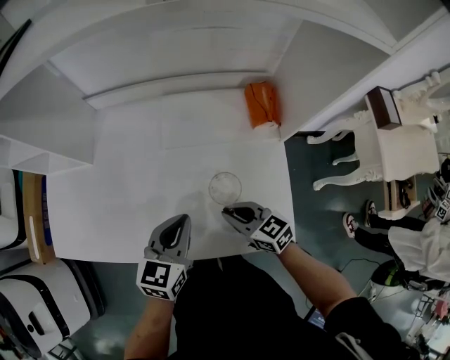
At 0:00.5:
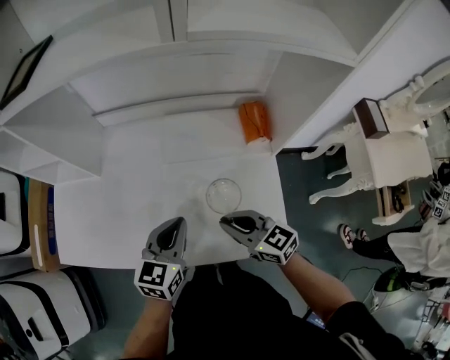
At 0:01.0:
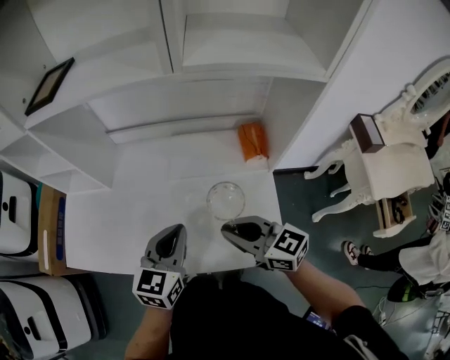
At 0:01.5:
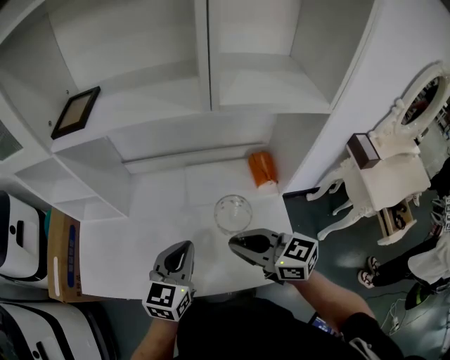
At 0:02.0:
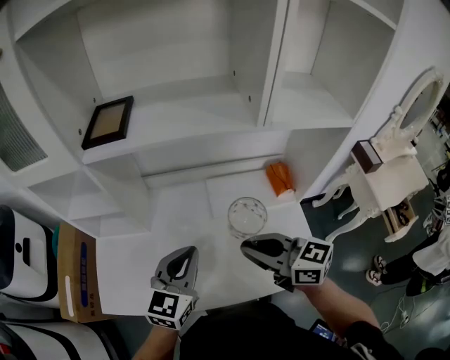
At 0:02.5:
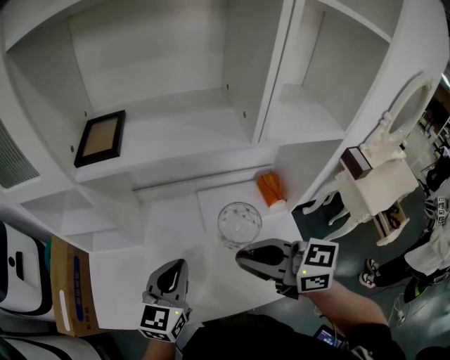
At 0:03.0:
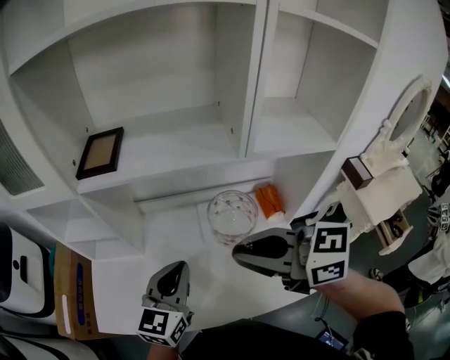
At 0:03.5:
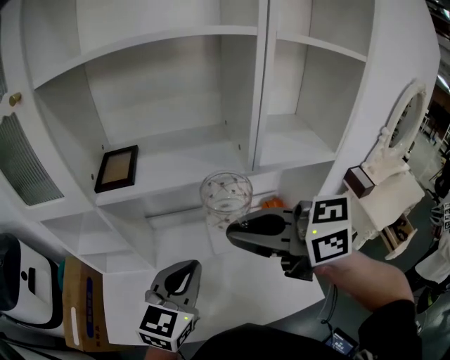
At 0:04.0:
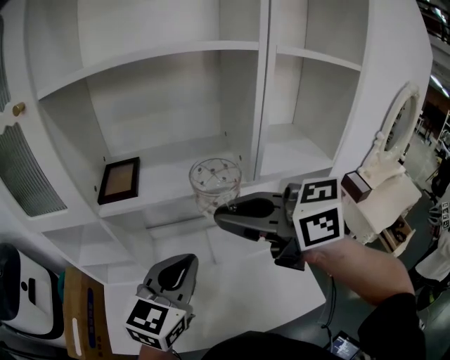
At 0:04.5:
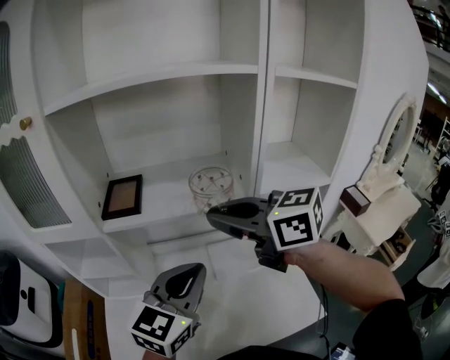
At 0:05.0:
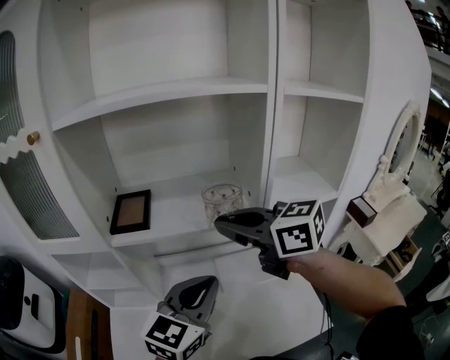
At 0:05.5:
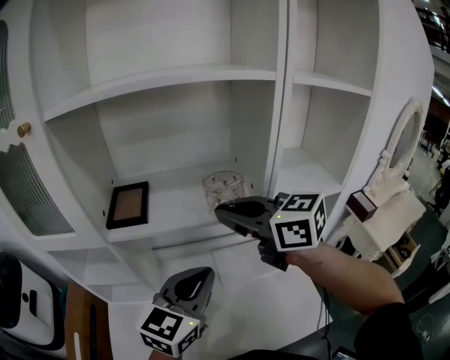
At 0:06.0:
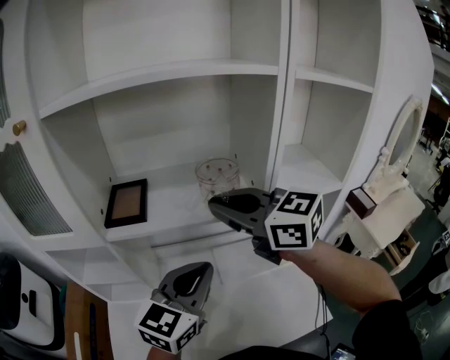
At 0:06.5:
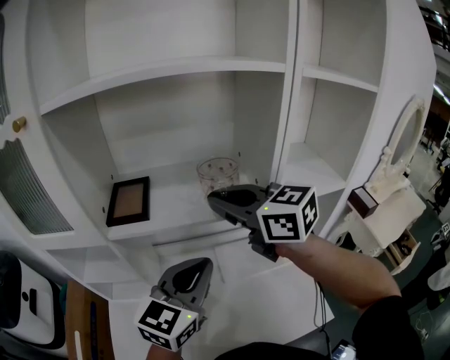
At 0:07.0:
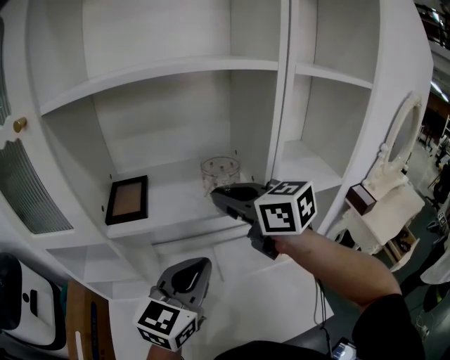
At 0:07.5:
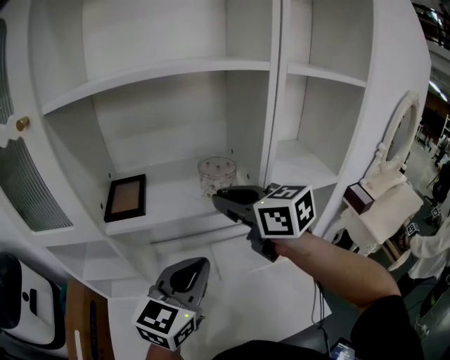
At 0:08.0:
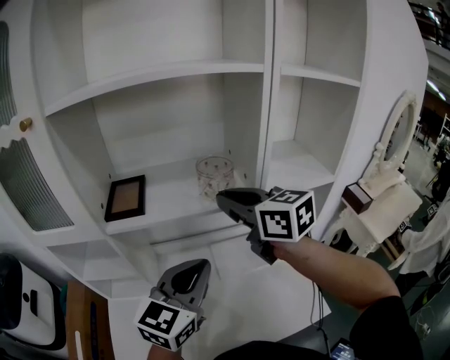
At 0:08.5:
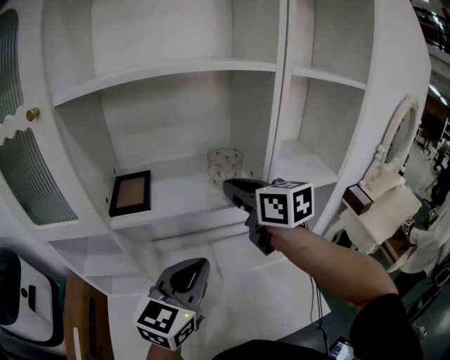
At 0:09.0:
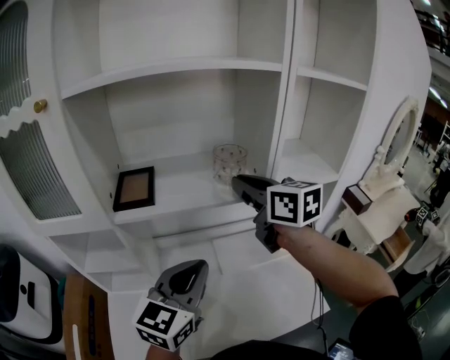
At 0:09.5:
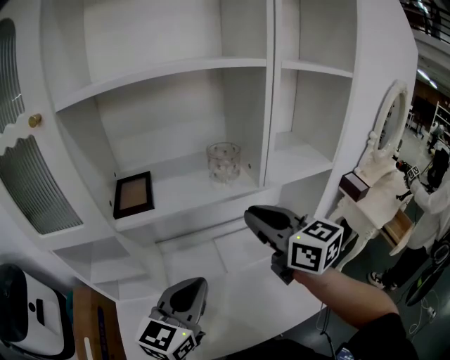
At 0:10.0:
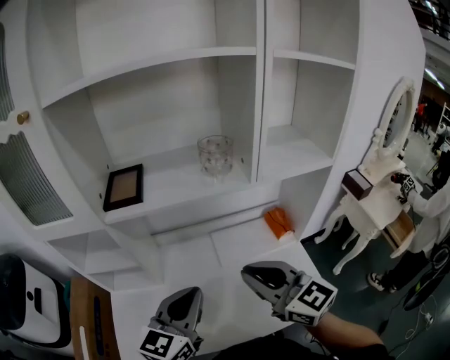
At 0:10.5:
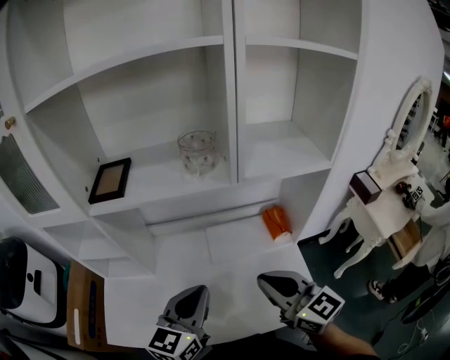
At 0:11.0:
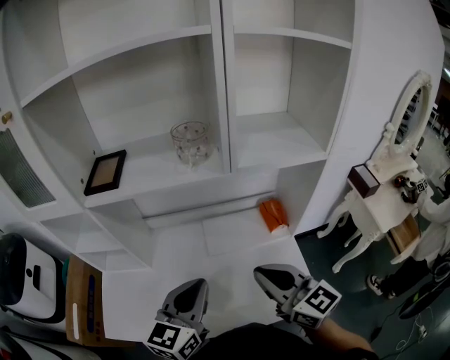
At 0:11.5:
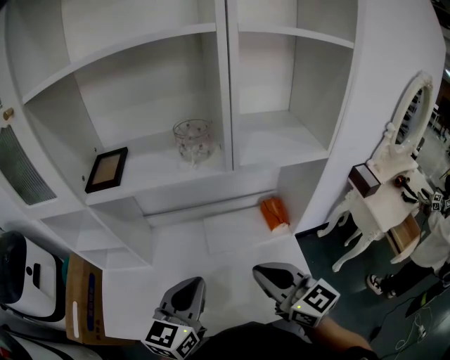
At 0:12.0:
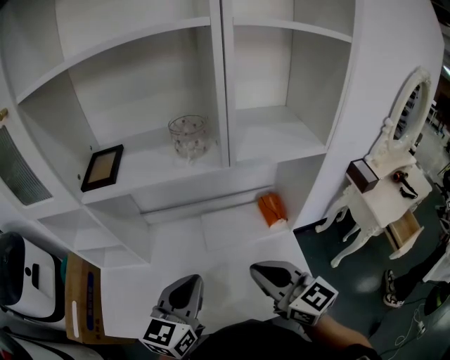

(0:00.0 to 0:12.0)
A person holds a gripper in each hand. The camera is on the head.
0:00.0 - 0:02.0: Both grippers travel together upward and to the left, about 25 cm.
0:02.0 - 0:04.0: The right gripper is displaced upward by some 25 cm. Meanwhile the left gripper heads upward, covering roughly 15 cm.
0:04.0 - 0:06.0: The right gripper shifts roughly 10 cm forward.
0:06.0 - 0:08.0: The grippers stay close to where they were, moving slightly.
0:08.0 - 0:10.0: The right gripper shifts roughly 20 cm backward and downward; the left gripper moves downward and backward, roughly 10 cm.
0:10.0 - 0:12.0: Both grippers move to the right, about 10 cm.

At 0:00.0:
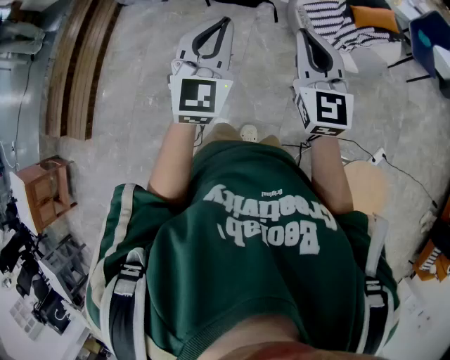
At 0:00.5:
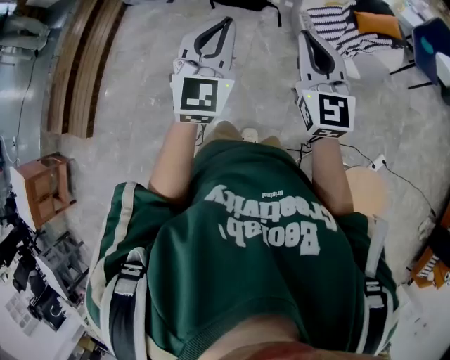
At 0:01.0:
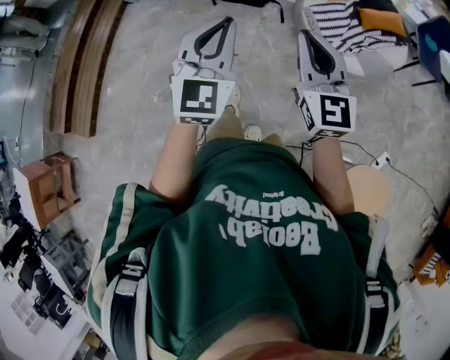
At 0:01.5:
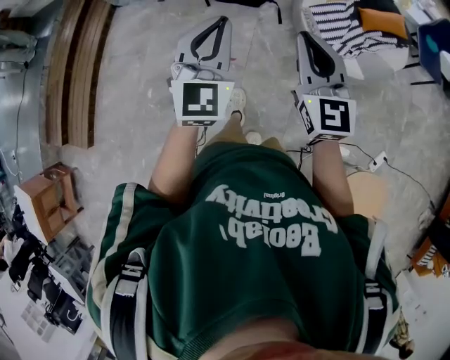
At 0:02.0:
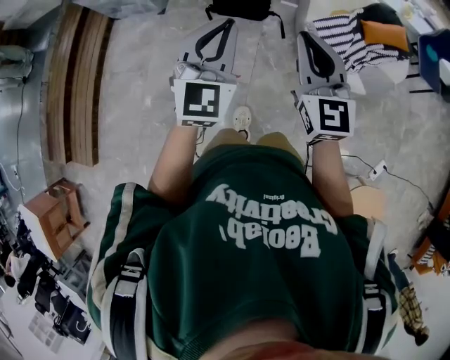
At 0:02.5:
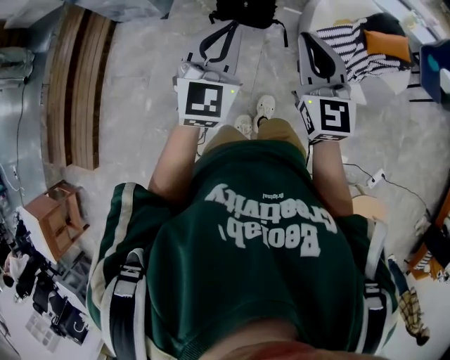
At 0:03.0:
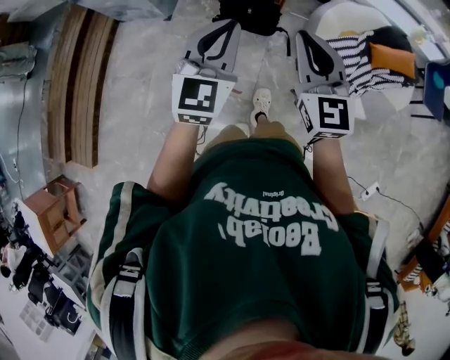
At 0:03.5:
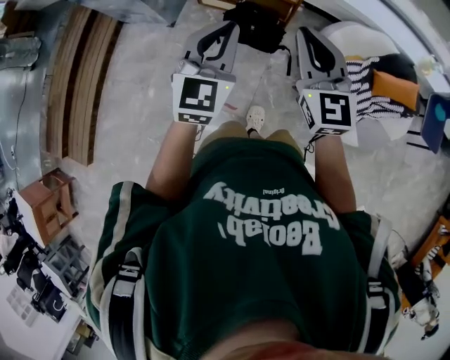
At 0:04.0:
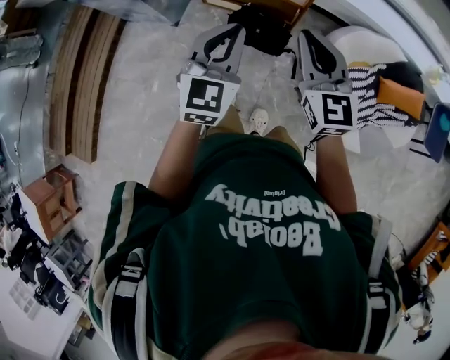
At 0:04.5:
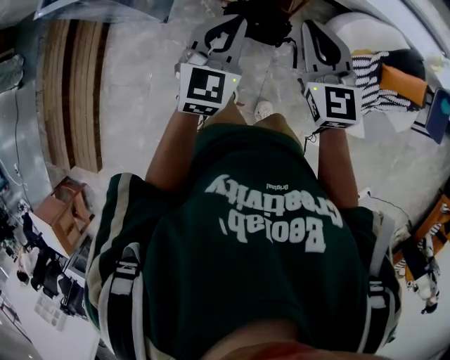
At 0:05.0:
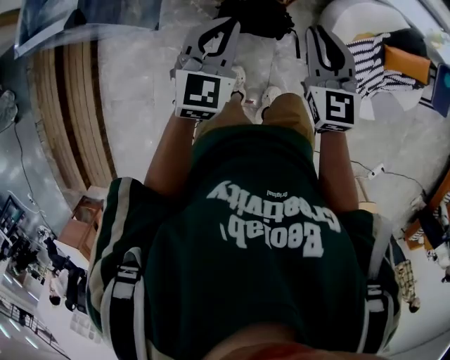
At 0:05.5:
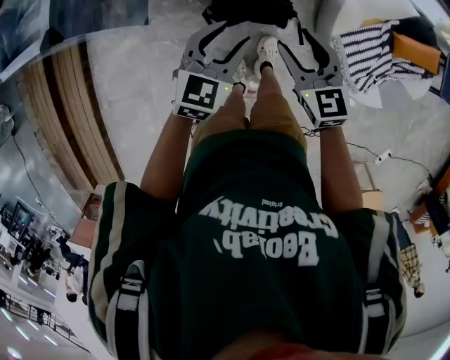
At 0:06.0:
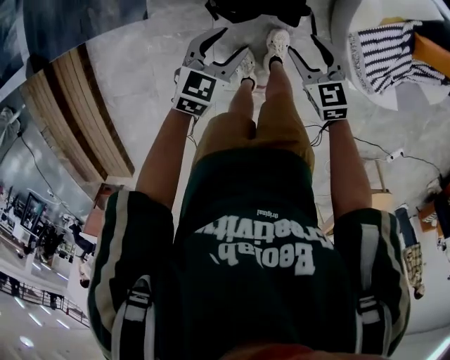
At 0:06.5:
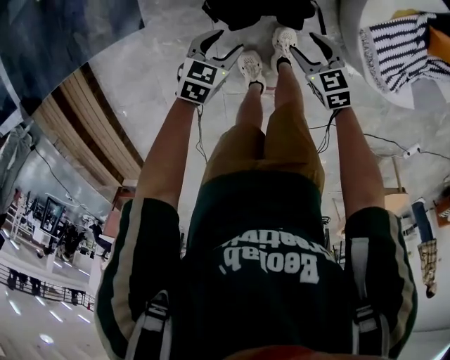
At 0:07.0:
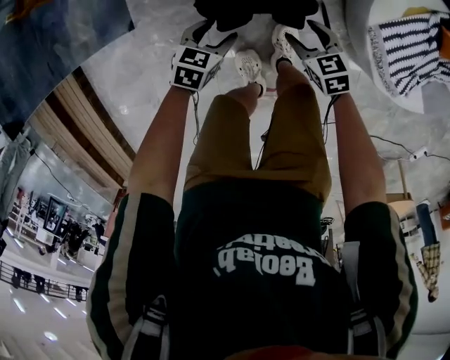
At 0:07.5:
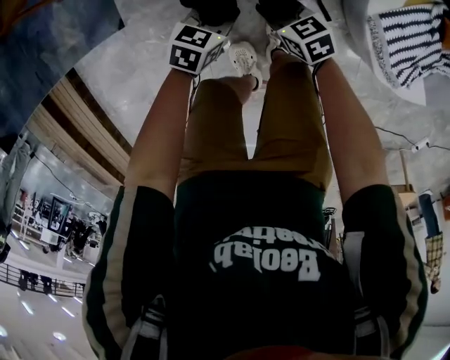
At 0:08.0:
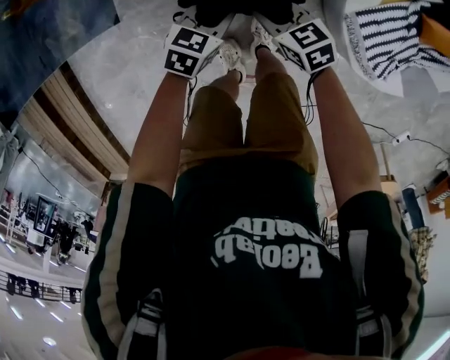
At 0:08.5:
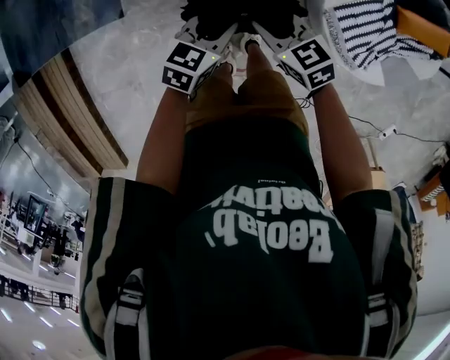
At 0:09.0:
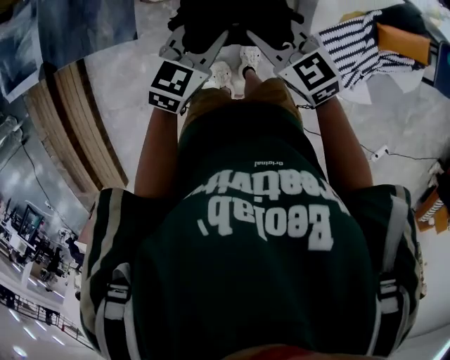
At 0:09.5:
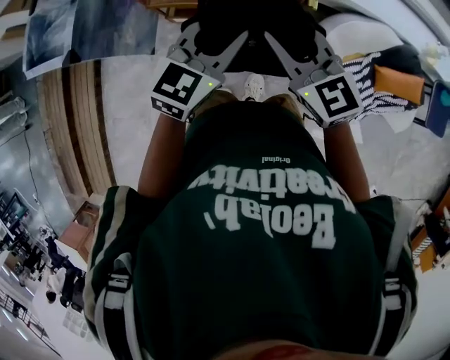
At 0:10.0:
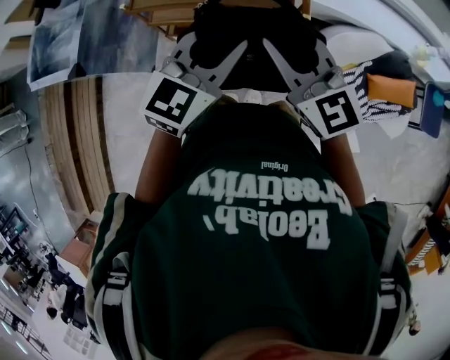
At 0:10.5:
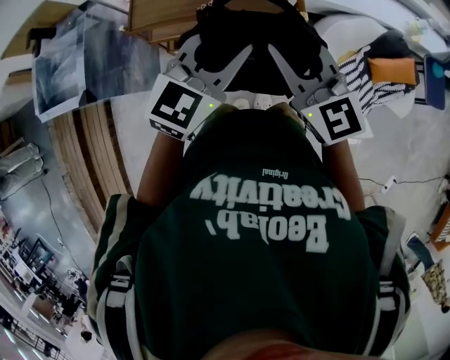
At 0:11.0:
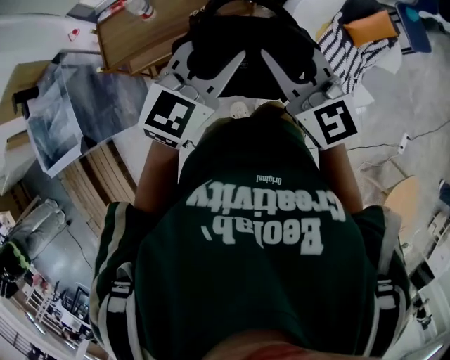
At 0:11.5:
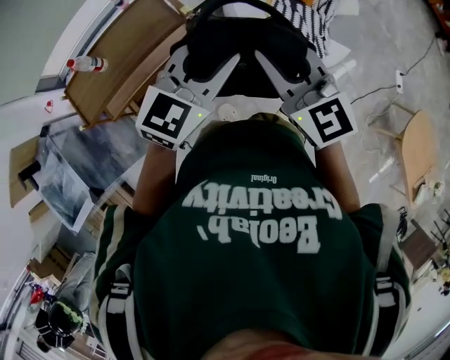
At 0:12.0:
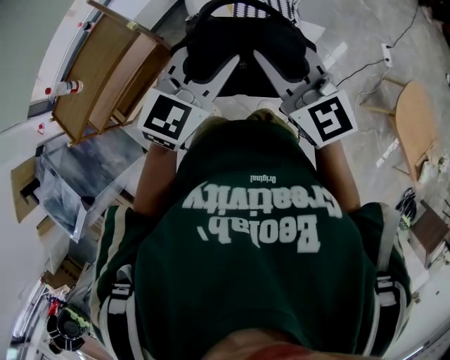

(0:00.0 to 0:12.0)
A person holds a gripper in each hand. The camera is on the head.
0:00.0 - 0:02.0: The two grippers go some 30 cm forward.
0:02.0 - 0:04.0: Both grippers are carried forward, roughly 40 cm.
0:04.0 - 0:06.0: The grippers both shift downward and forward by about 50 cm. The right gripper tilts its fingers some 40 degrees downward, and opens, while the left gripper swivels approximately 40 degrees, and opens.
0:06.0 - 0:08.0: The left gripper goes approximately 20 cm downward, forward and to the right, and closes. Meanwhile the right gripper goes about 20 cm downward and forward, and closes up.
0:08.0 - 0:10.0: Both grippers move upward, approximately 60 cm. The left gripper tilts its fingers some 30 degrees upward; the right gripper angles its fingers upward, by approximately 30 degrees.
0:10.0 - 0:12.0: Both grippers are carried some 40 cm. The right gripper swivels some 50 degrees; the left gripper turns by roughly 50 degrees.

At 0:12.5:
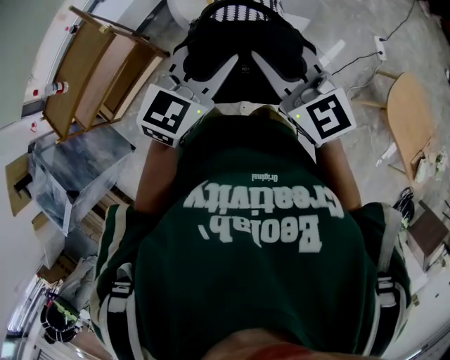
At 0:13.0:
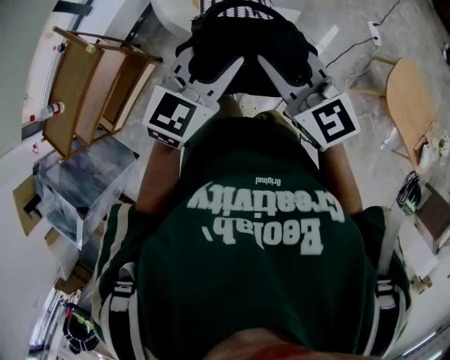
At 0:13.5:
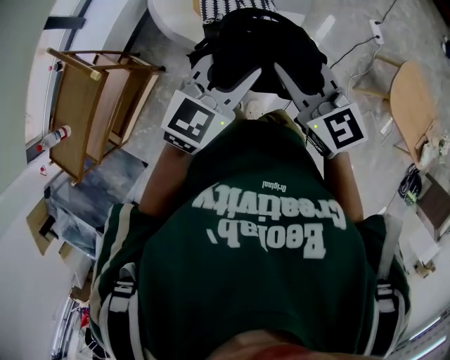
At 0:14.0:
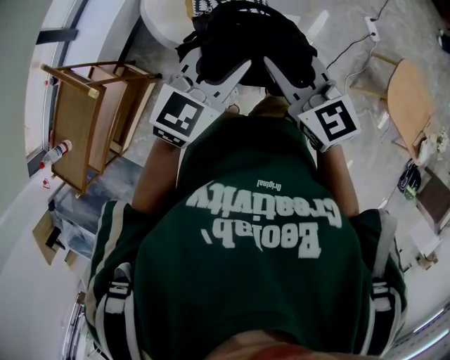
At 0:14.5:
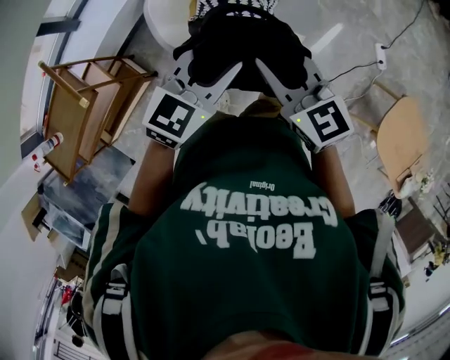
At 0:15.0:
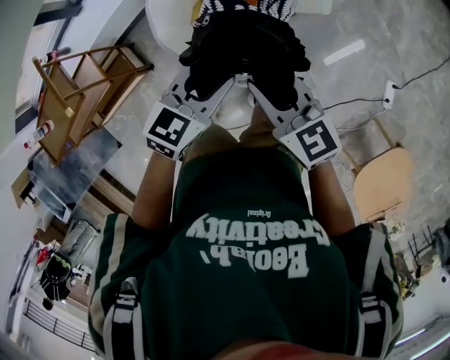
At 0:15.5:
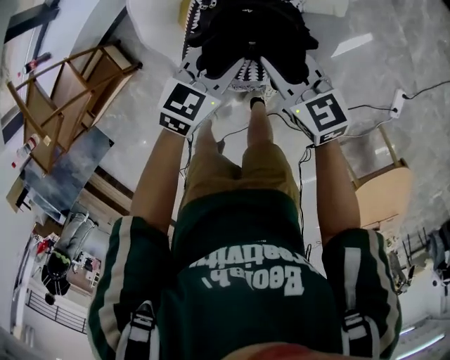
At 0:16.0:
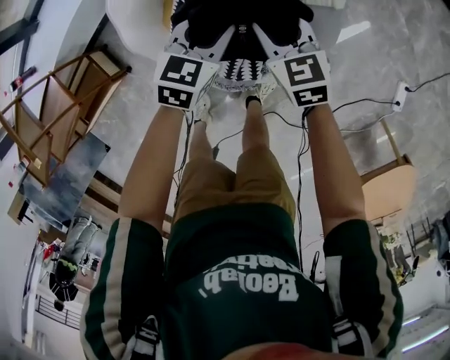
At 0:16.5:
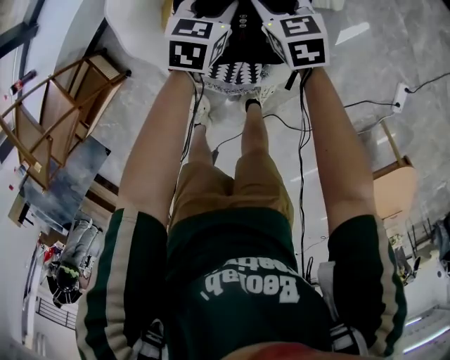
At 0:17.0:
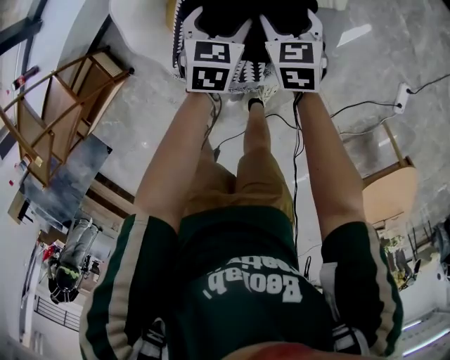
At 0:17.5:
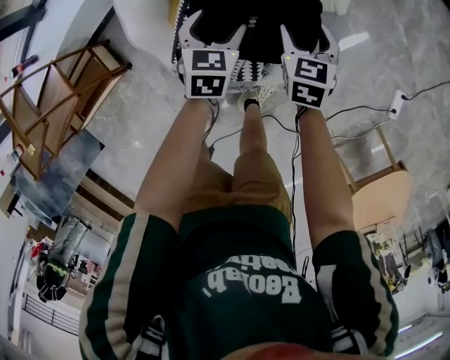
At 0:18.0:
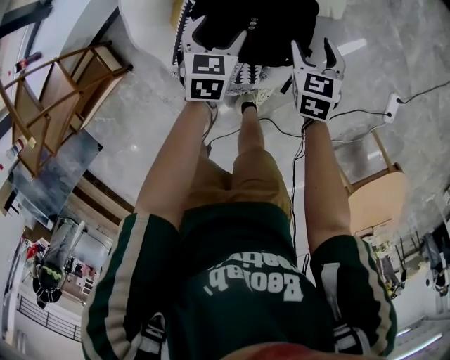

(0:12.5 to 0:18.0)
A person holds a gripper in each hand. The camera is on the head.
0:12.5 - 0:14.5: The pair of grippers is taken forward, roughly 40 cm.
0:14.5 - 0:16.0: Both grippers move downward and forward, some 60 cm. The left gripper rotates approximately 30 degrees. The right gripper rotates about 20 degrees.
0:16.0 - 0:18.0: The right gripper travels to the right by about 10 cm, swivels roughly 30 degrees, and opens up. The left gripper moves roughly 5 cm forward and comes back, and opens.
